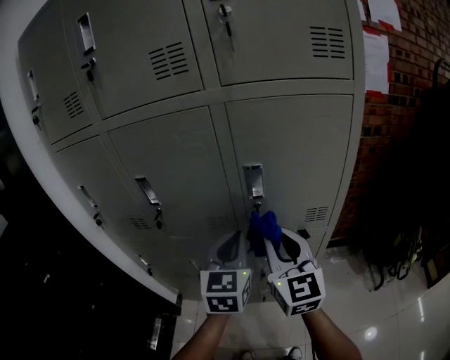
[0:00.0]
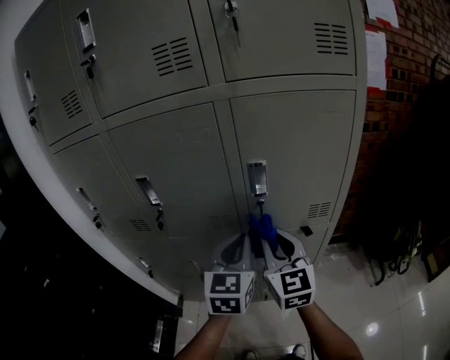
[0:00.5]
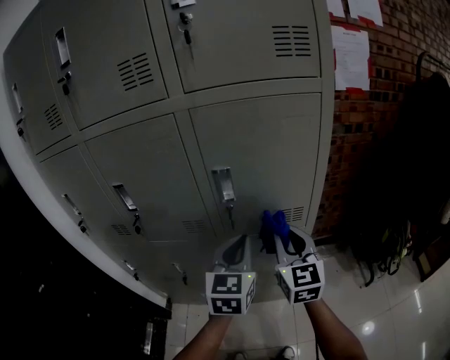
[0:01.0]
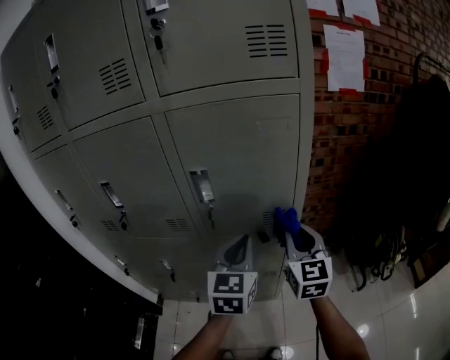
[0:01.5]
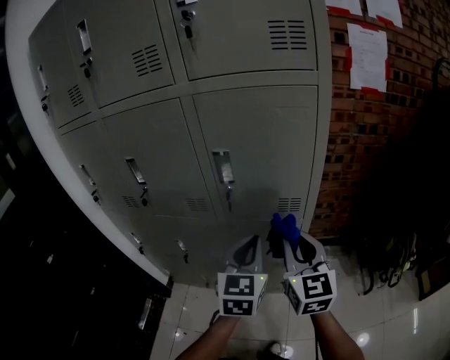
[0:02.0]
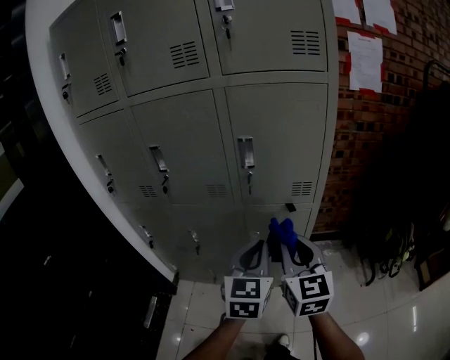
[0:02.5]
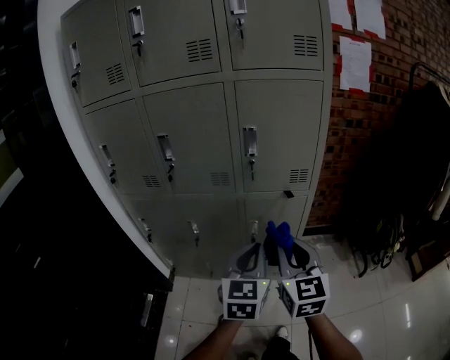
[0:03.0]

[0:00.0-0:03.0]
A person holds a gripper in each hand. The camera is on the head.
0:00.0 to 0:01.5: Both grippers travel together to the right, approximately 15 cm.
0:01.5 to 0:03.0: Both grippers move backward and to the left, about 25 cm.

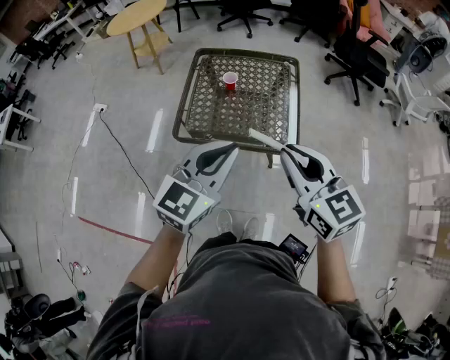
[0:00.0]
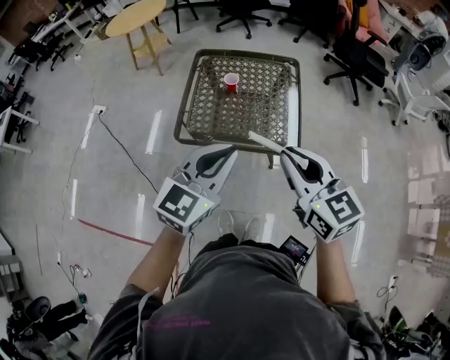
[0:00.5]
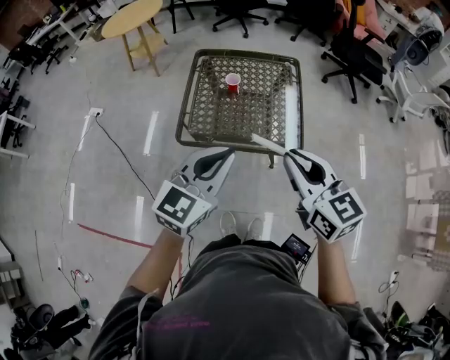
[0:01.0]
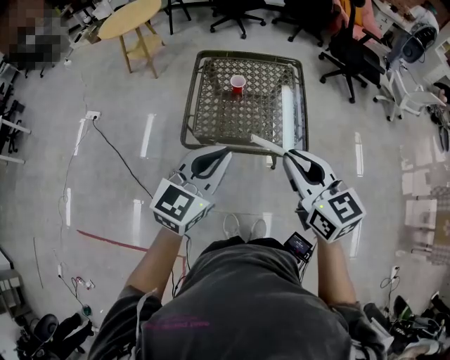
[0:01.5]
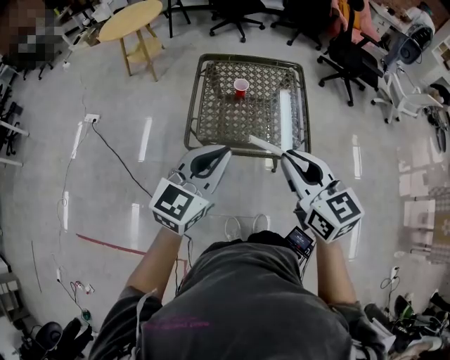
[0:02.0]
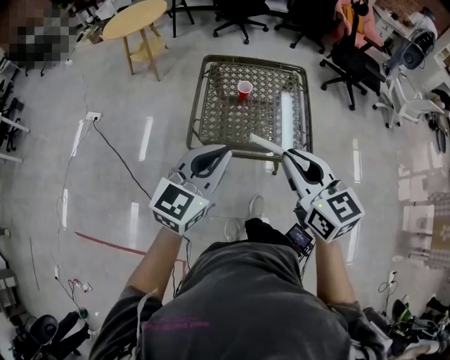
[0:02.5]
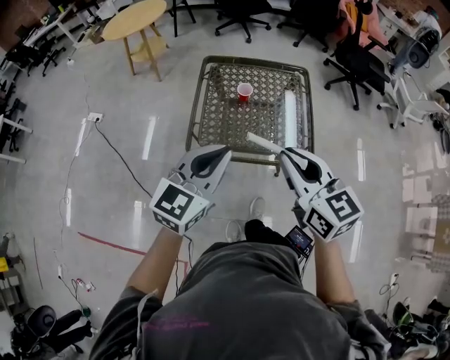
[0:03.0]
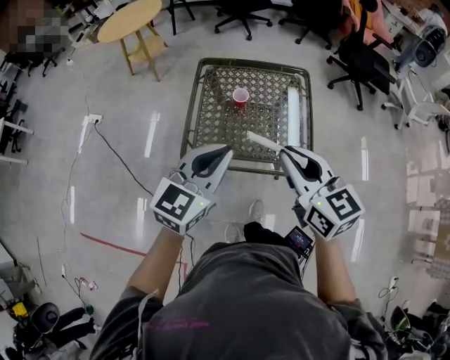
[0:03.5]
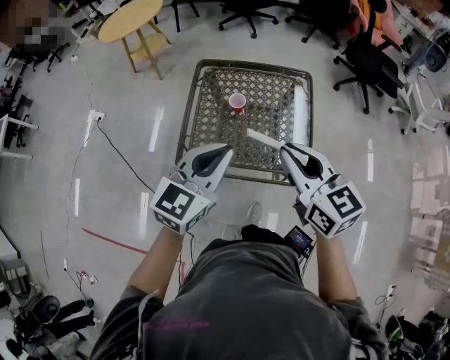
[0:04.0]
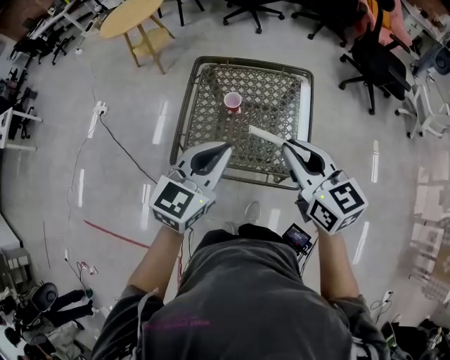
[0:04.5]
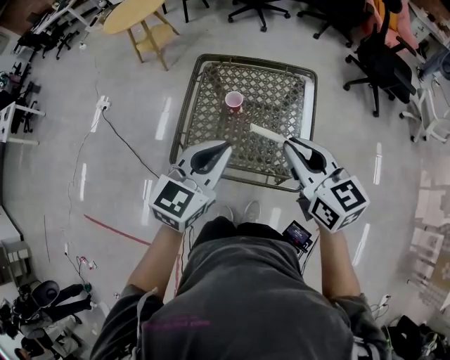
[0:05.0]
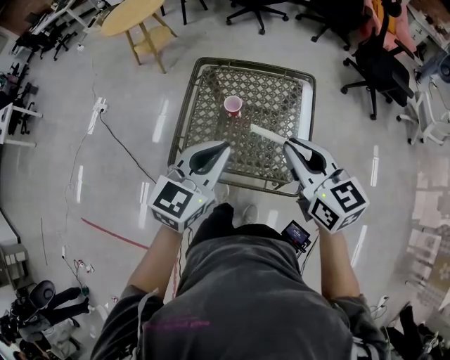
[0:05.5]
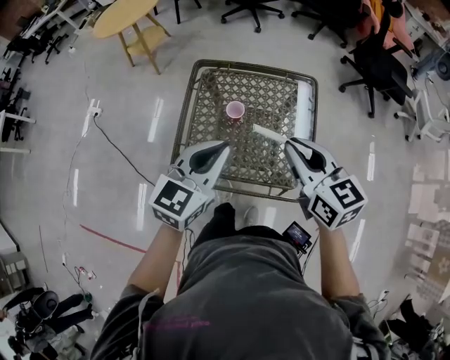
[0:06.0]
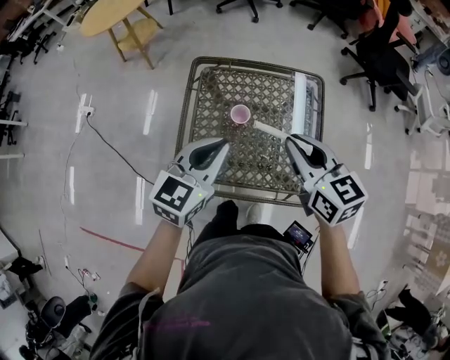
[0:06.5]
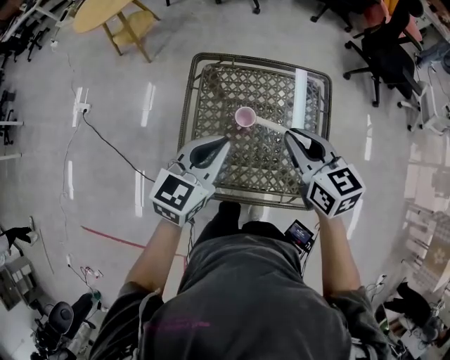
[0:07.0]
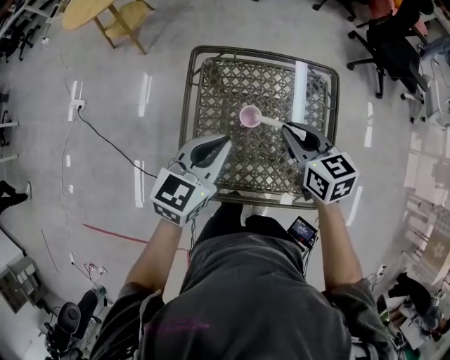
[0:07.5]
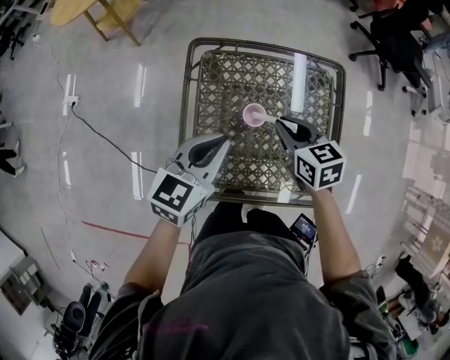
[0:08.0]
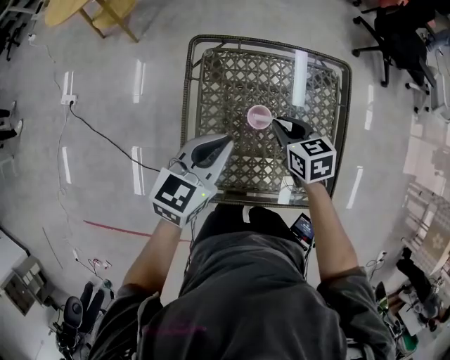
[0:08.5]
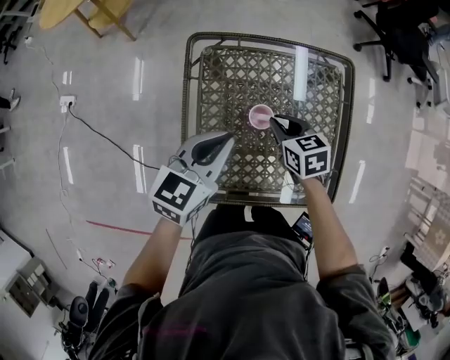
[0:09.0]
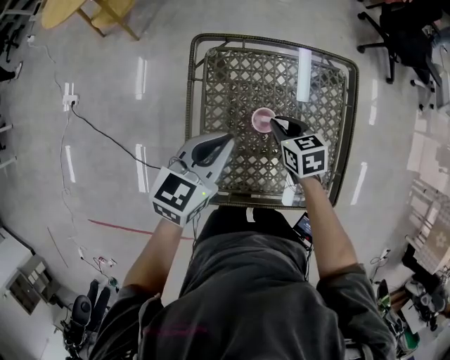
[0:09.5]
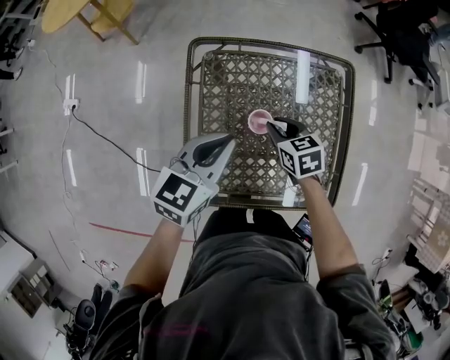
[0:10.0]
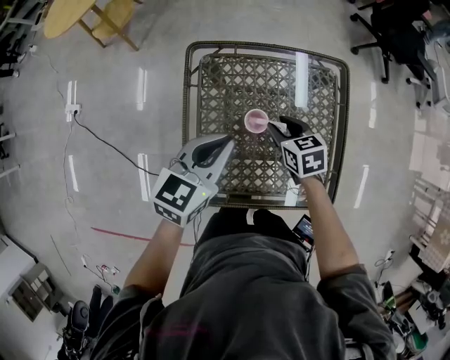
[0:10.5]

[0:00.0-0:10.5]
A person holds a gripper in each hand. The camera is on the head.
0:00.0 to 0:02.0: Both grippers move to the left, roughly 10 cm.
0:02.0 to 0:04.0: The right gripper travels forward by some 20 cm; the left gripper moves forward and to the right, some 20 cm.
0:04.0 to 0:06.5: Both grippers travel together forward and downward, roughly 20 cm.
0:06.5 to 0:08.5: The right gripper goes roughly 25 cm downward and forward, and rotates approximately 30 degrees, while the left gripper travels downward, forward and to the left by approximately 15 cm.
0:08.5 to 0:10.5: The grippers move only a little.

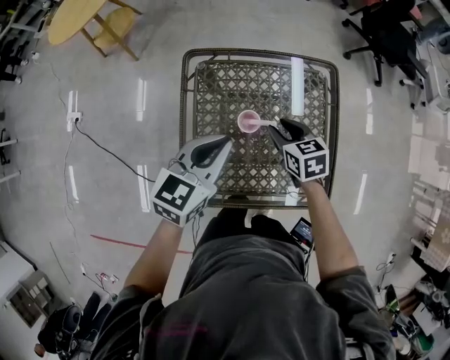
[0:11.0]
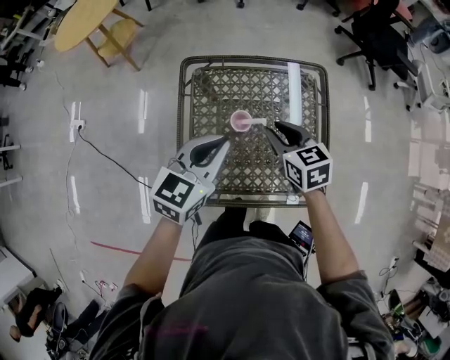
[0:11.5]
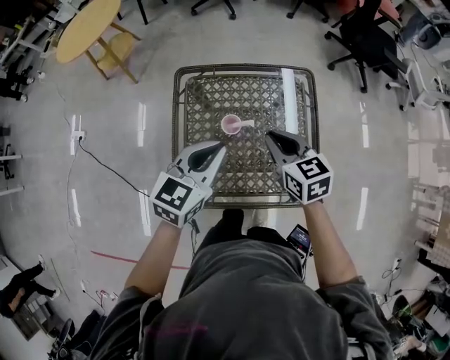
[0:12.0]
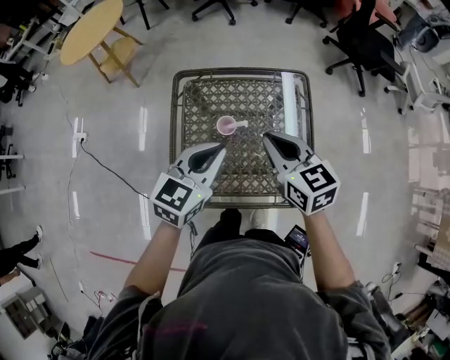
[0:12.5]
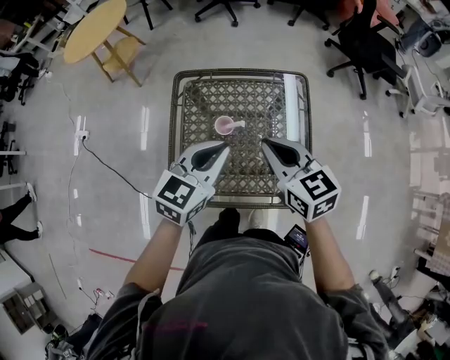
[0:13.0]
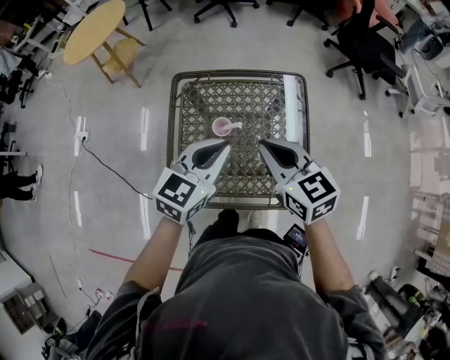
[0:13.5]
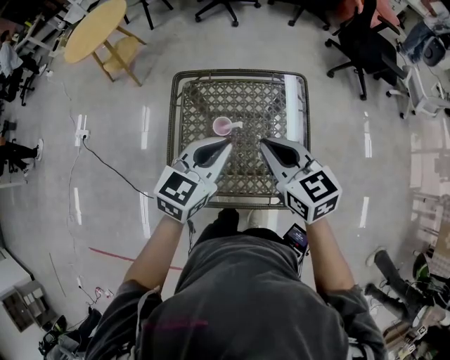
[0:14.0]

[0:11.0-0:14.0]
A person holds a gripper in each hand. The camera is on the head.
0:11.0 to 0:12.5: The left gripper moves to the right, backward and upward, about 10 cm, while the right gripper shifts about 20 cm upward and backward, changes its angle by some 20 degrees, and closes its fingers.
0:12.5 to 0:14.0: There are only small adjustments of the grippers.

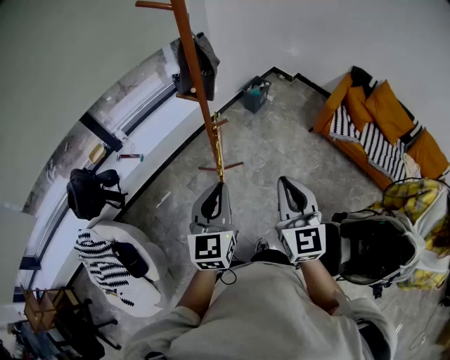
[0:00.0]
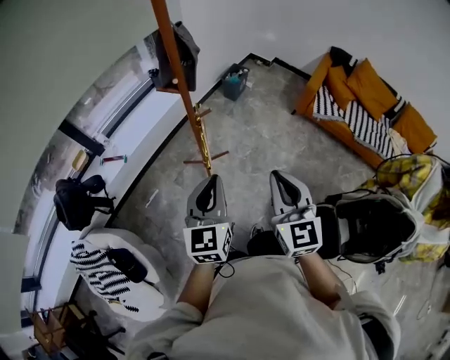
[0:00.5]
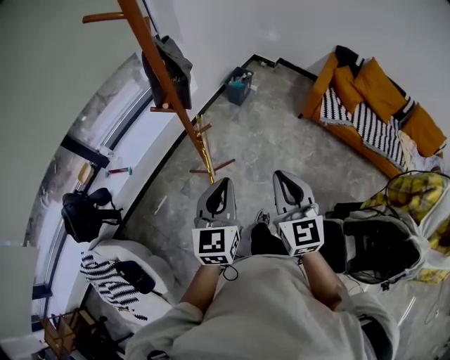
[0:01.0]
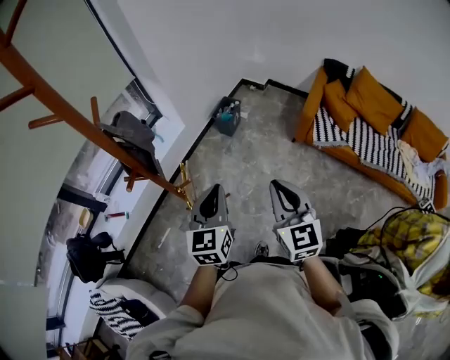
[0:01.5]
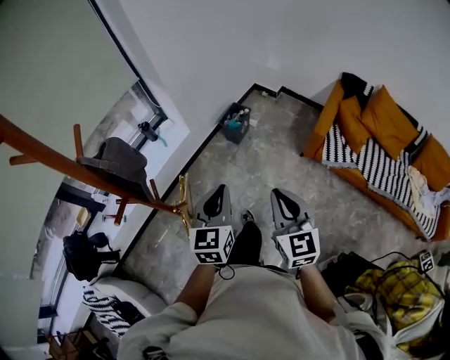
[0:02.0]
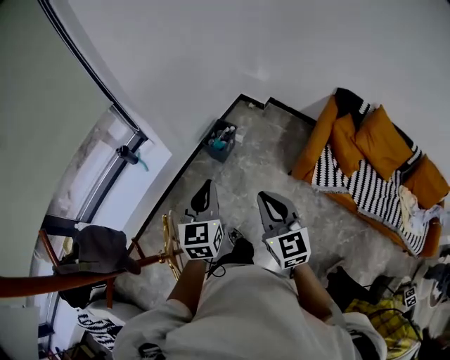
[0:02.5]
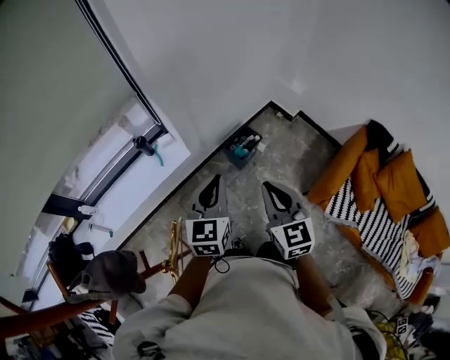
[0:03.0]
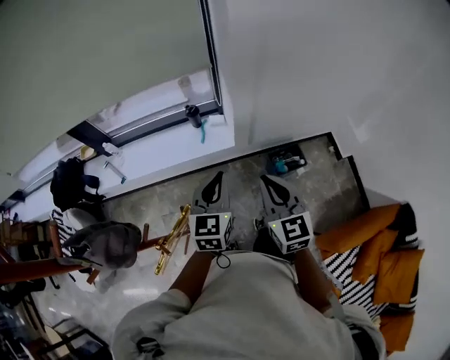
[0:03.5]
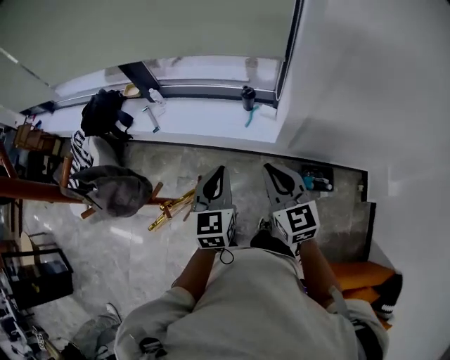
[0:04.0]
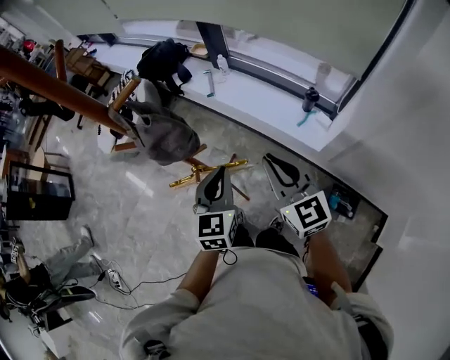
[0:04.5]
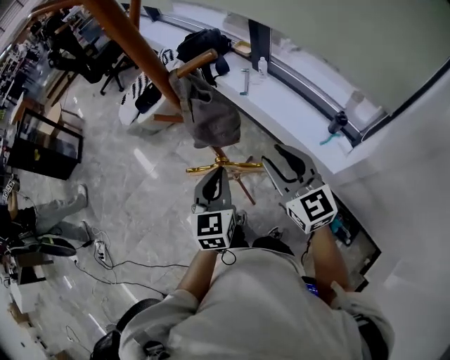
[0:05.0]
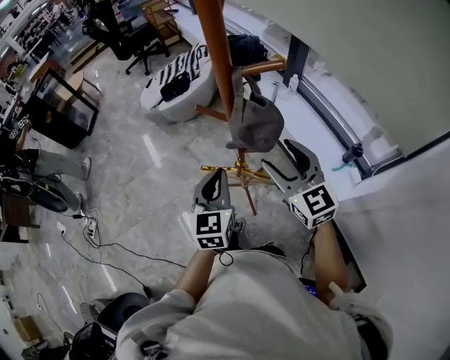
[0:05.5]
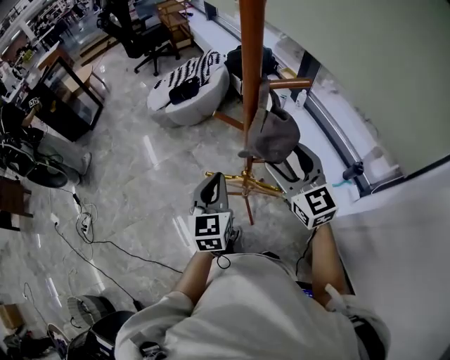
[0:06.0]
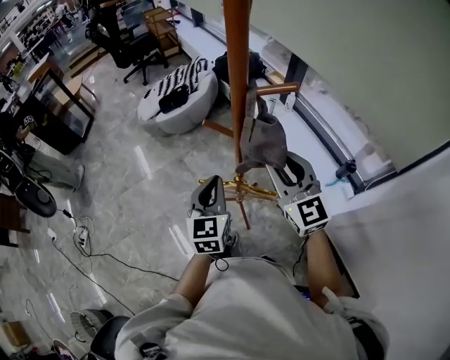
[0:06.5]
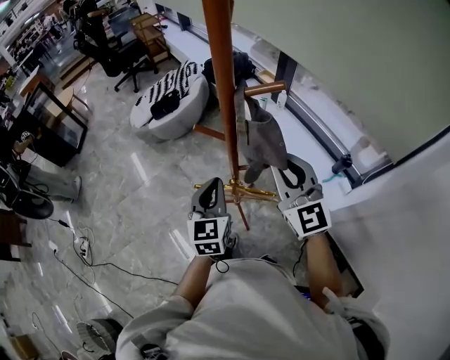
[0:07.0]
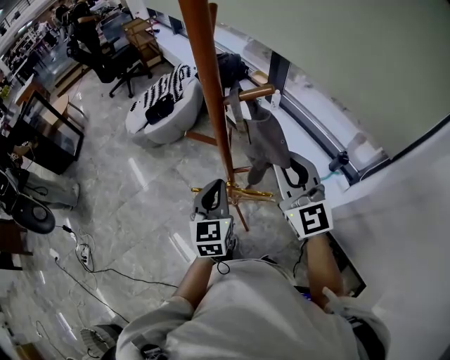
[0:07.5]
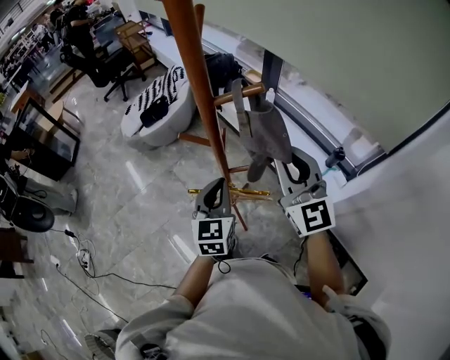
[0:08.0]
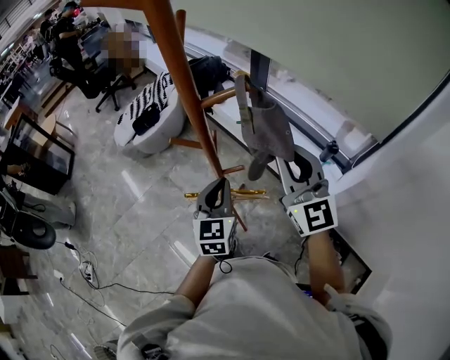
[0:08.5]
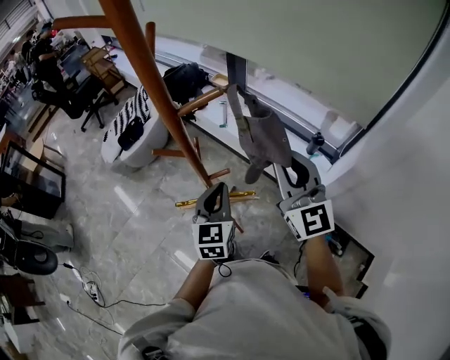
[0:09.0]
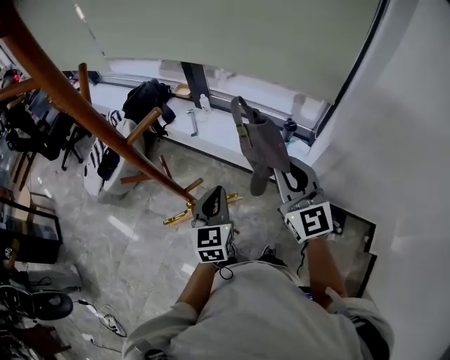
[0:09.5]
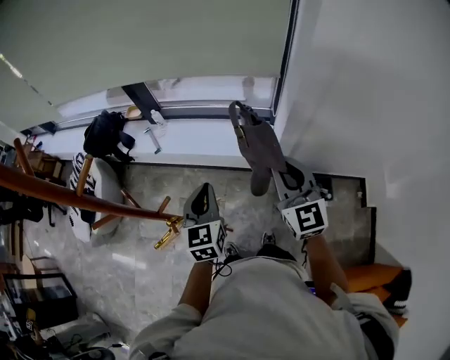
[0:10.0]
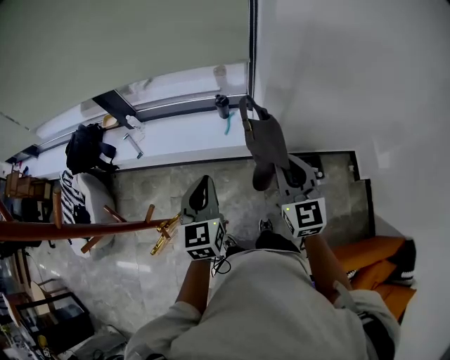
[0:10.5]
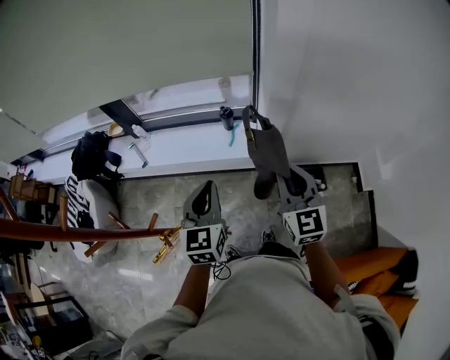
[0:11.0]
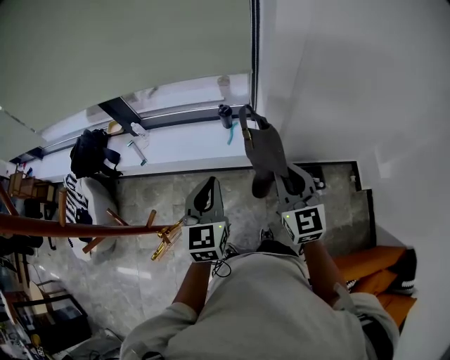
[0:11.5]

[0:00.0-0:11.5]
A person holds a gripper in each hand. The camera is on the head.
0:00.0 to 0:02.0: Both grippers move forward and to the right, roughly 40 cm.
0:02.0 to 0:04.0: The right gripper ends up about 50 cm from where it was, and changes its angle by some 70 degrees; the left gripper shifts by approximately 40 cm, and swivels some 60 degrees.
0:04.0 to 0:06.0: The left gripper moves about 35 cm, and rotates some 50 degrees. The right gripper ends up roughly 35 cm from where it was, swivels approximately 60 degrees, and opens.
0:06.0 to 0:07.5: The right gripper travels upward by roughly 5 cm, and closes. The left gripper is displaced to the right by some 5 cm.
0:07.5 to 0:09.5: The left gripper moves about 15 cm, and rotates some 30 degrees, while the right gripper moves roughly 15 cm, and swivels about 30 degrees.
0:09.5 to 0:11.5: The left gripper changes place by roughly 15 cm, and changes its angle by approximately 30 degrees; the right gripper moves approximately 20 cm, and turns by some 30 degrees.
